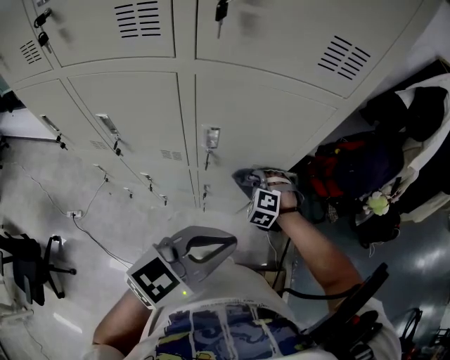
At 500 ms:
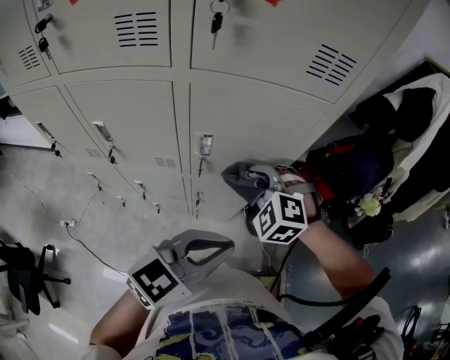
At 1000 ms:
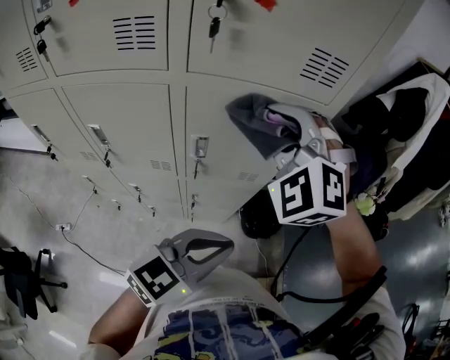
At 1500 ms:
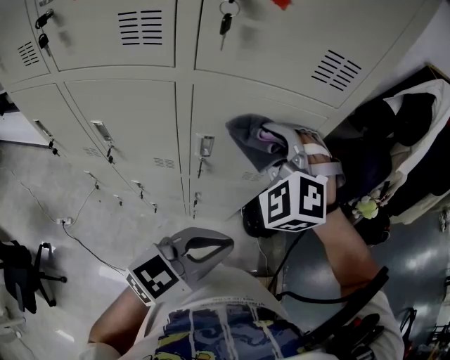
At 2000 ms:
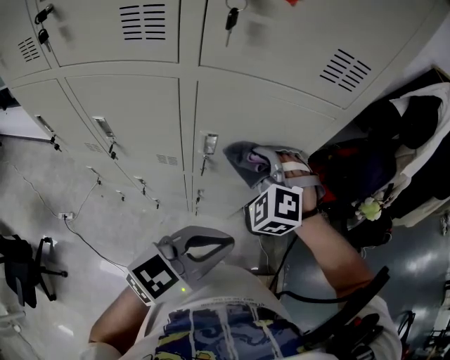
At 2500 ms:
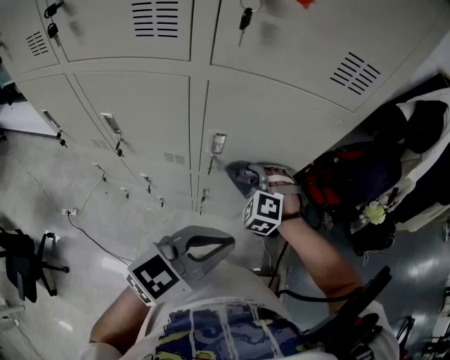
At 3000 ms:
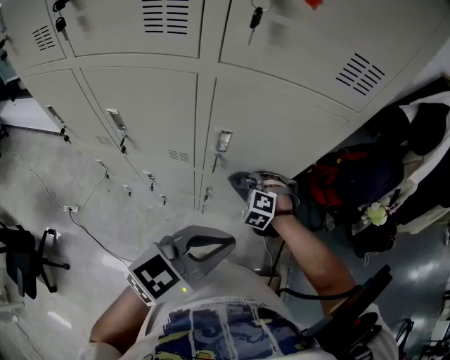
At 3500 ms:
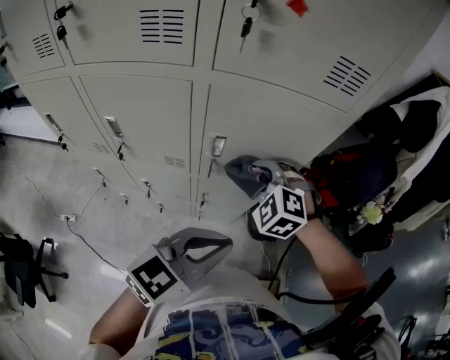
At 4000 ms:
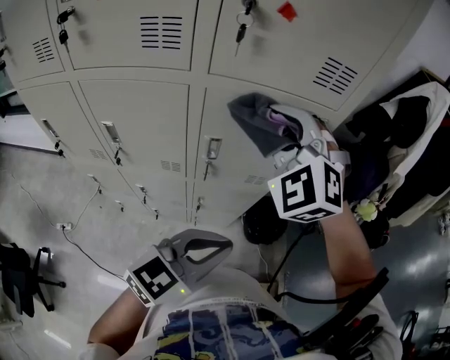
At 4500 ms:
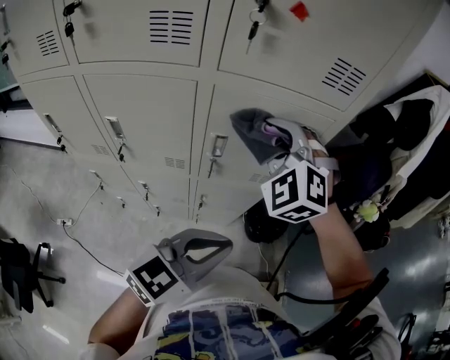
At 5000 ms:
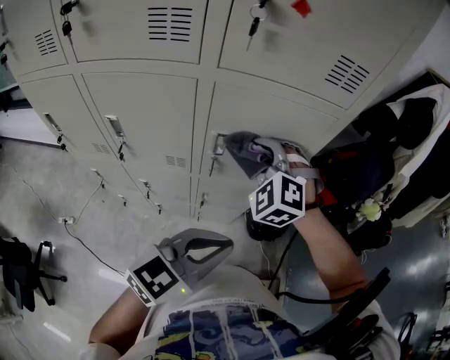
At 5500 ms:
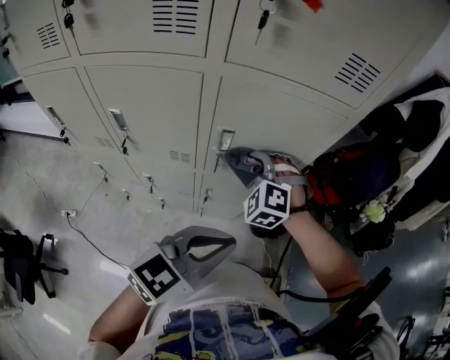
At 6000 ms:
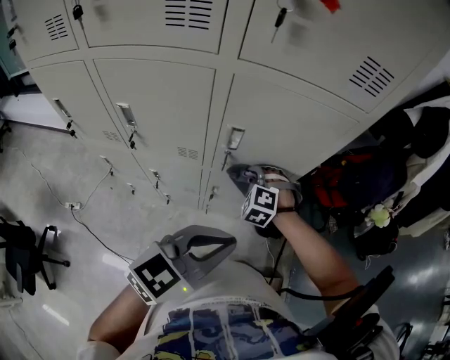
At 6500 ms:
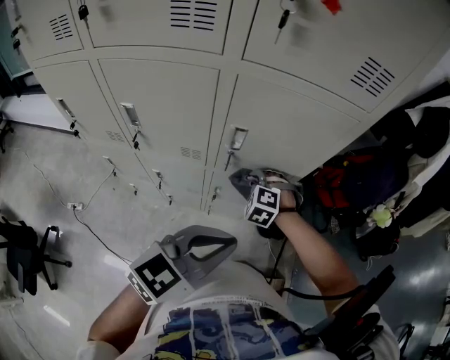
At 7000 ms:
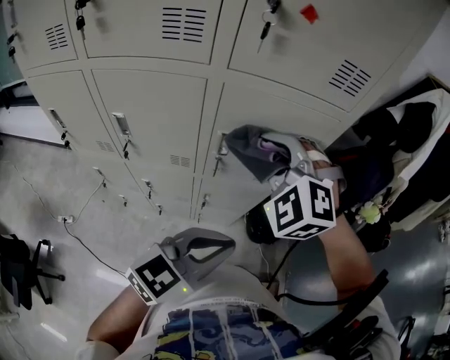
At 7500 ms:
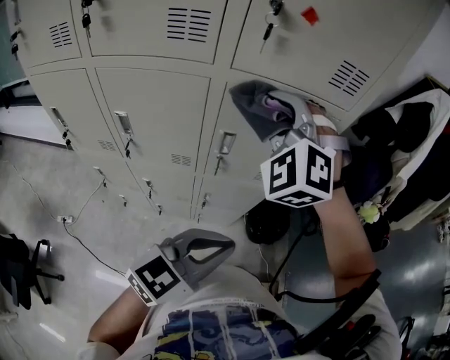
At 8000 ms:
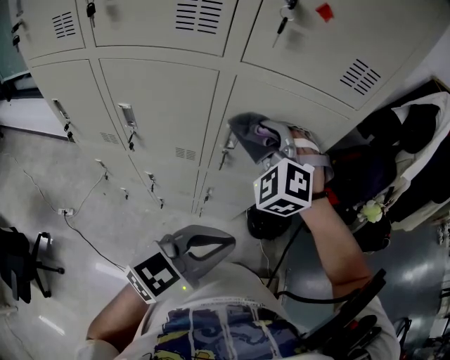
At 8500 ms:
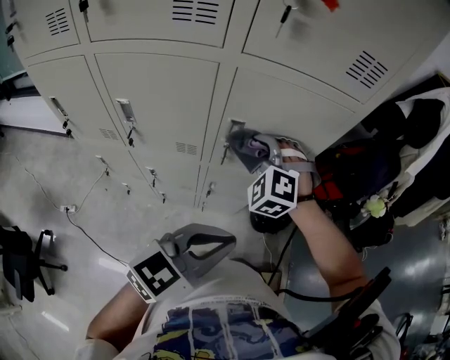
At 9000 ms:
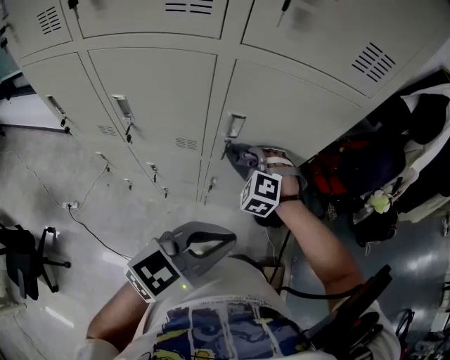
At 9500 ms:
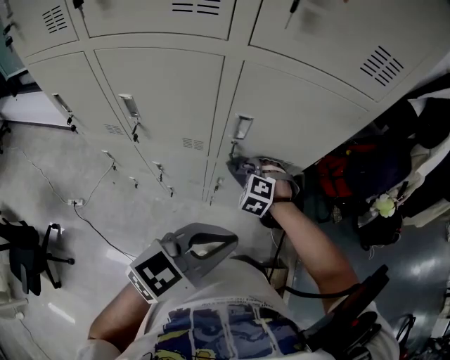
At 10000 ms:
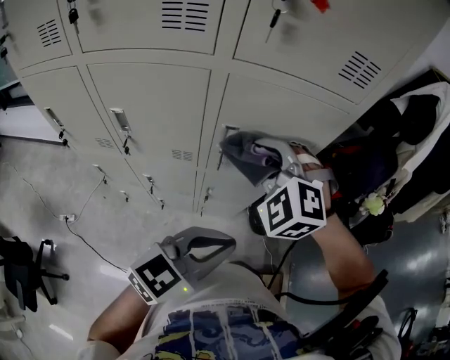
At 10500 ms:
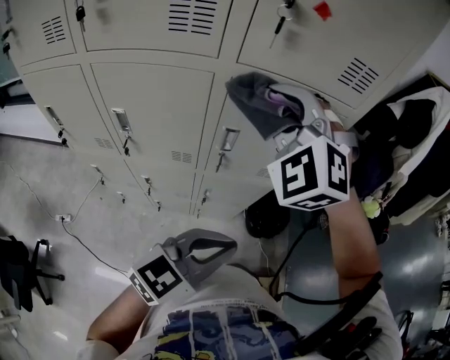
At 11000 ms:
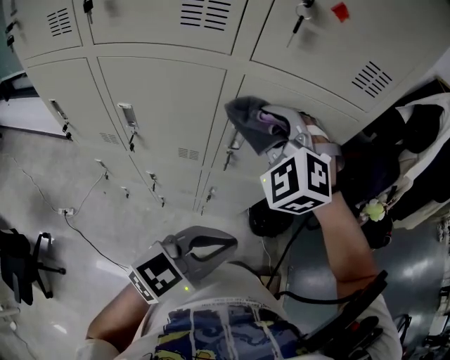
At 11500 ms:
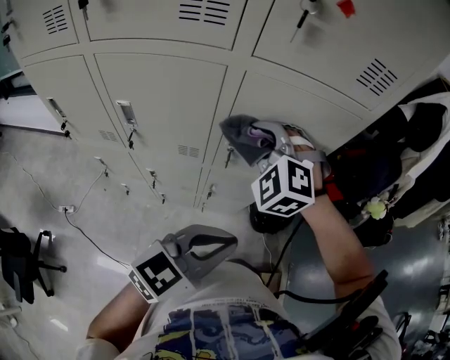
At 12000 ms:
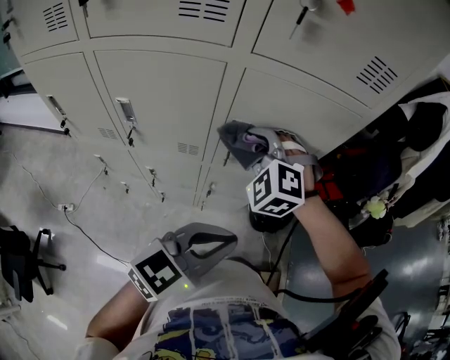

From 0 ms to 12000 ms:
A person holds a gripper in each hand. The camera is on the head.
From 0 ms to 2000 ms: The right gripper shifts approximately 20 cm upward.
From 2000 ms to 4000 ms: The right gripper heads upward, covering roughly 20 cm, and turns by roughly 20 degrees.
From 4000 ms to 6000 ms: The right gripper goes about 35 cm downward, and tilts its fingers about 30 degrees downward.
From 6000 ms to 8000 ms: The right gripper goes some 25 cm upward, and rotates about 20 degrees.
From 8000 ms to 10000 ms: The right gripper travels downward and back again, about 25 cm each way.
From 10000 ms to 12000 ms: The right gripper moves roughly 15 cm upward and comes back.

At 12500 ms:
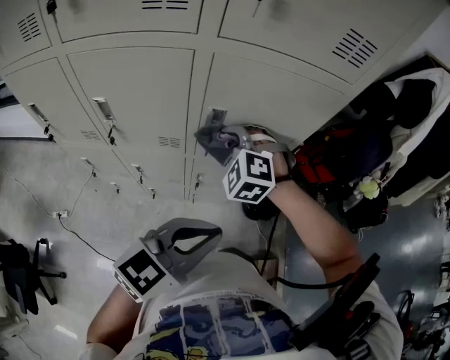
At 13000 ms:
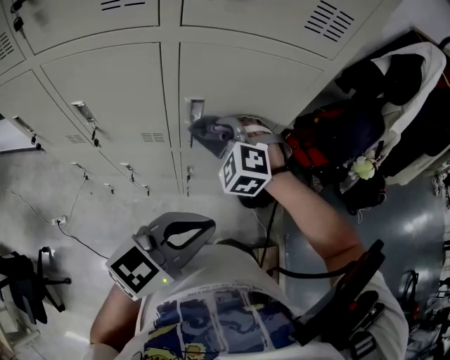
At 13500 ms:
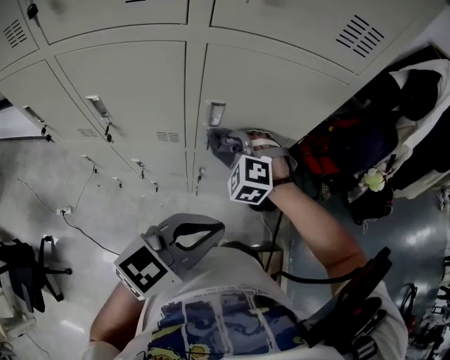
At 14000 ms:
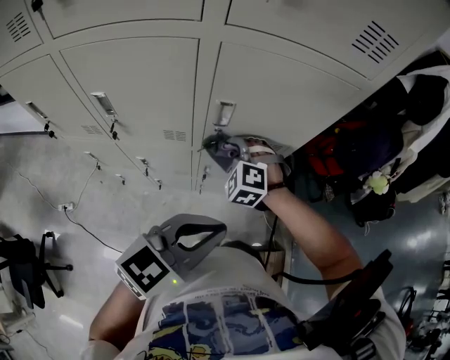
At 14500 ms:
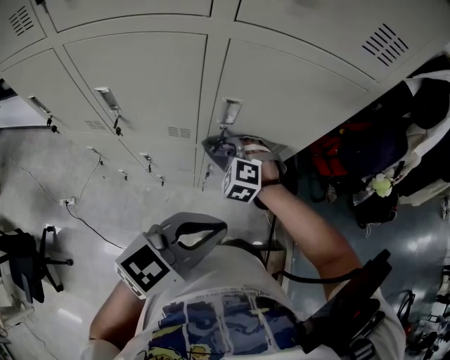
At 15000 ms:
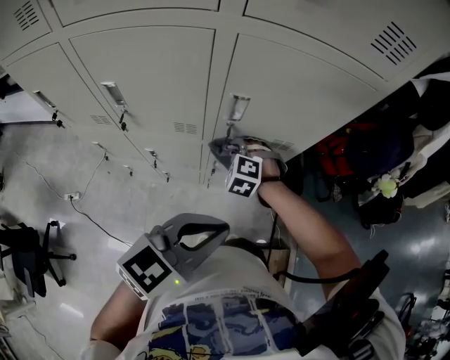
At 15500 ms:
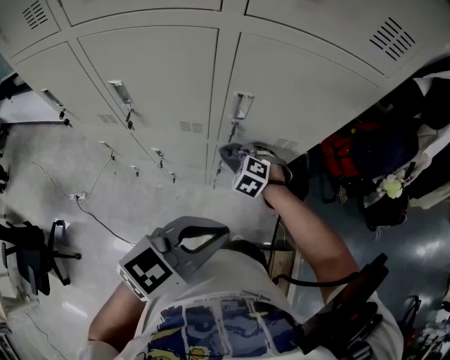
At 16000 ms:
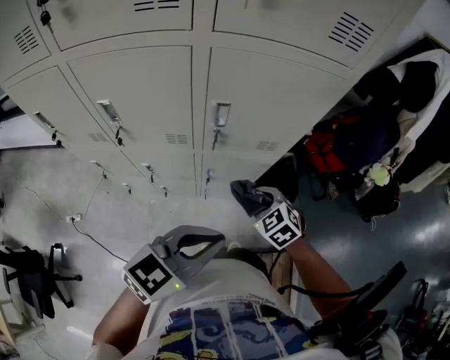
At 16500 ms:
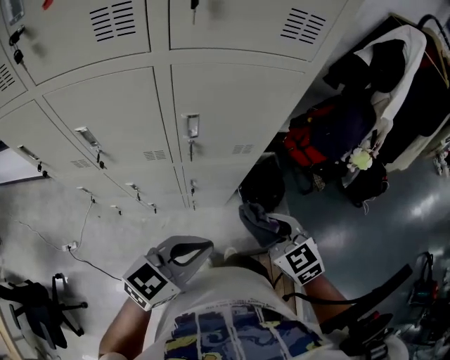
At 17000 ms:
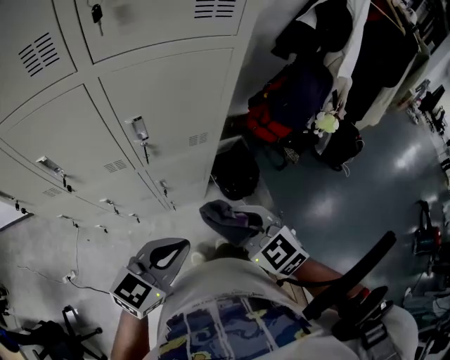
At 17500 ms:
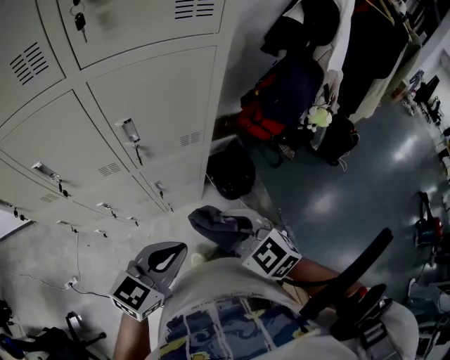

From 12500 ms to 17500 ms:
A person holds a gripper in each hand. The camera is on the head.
From 12500 ms to 15000 ms: The right gripper heads downward, covering some 15 cm.
From 15000 ms to 17500 ms: The right gripper is displaced backward, to the right and upward by roughly 30 cm, and twists about 50 degrees clockwise, seen from behind; the left gripper changes place by approximately 10 cm.

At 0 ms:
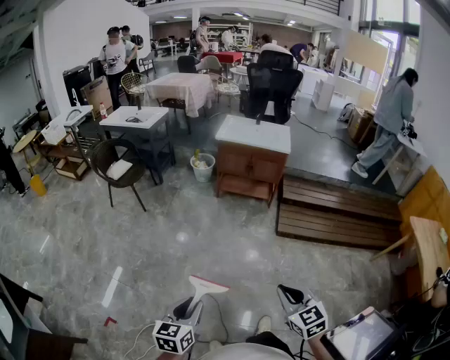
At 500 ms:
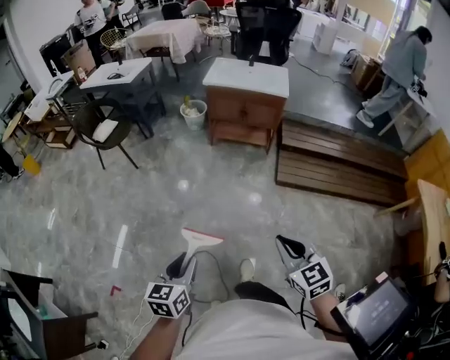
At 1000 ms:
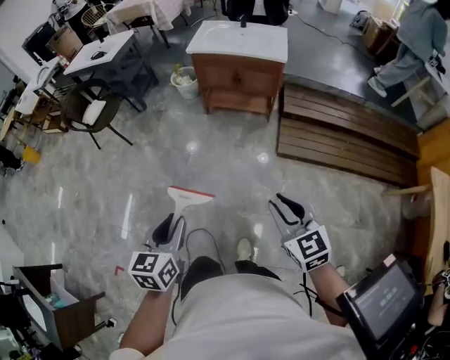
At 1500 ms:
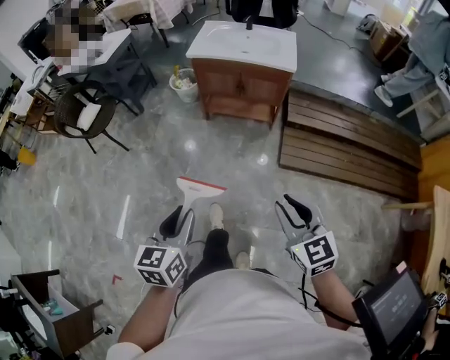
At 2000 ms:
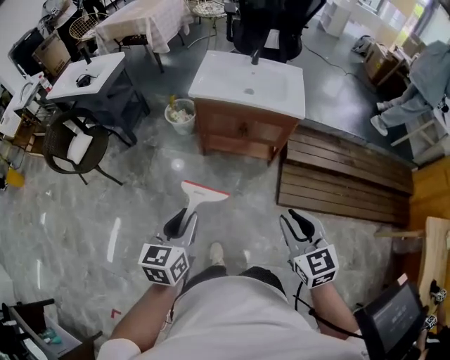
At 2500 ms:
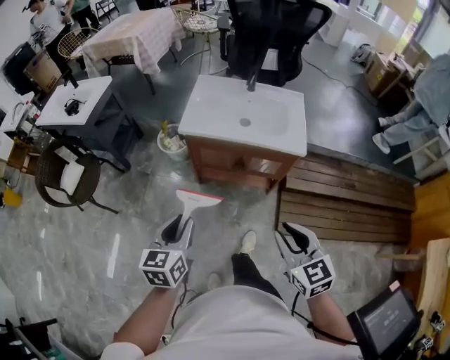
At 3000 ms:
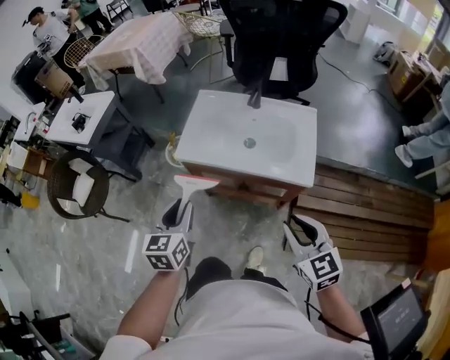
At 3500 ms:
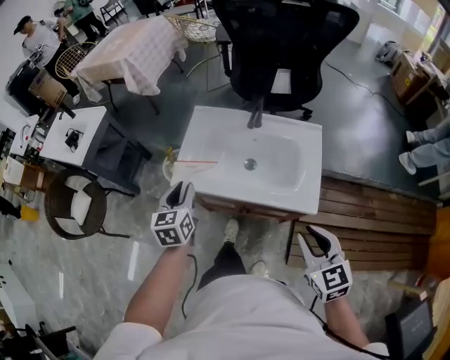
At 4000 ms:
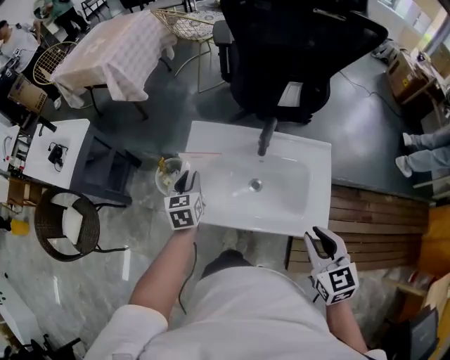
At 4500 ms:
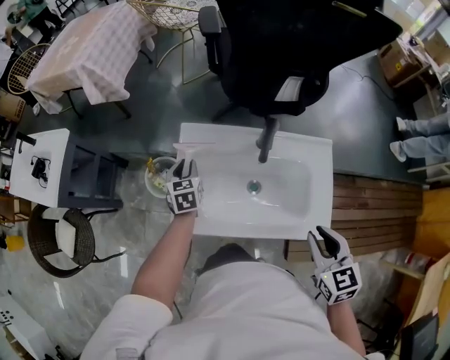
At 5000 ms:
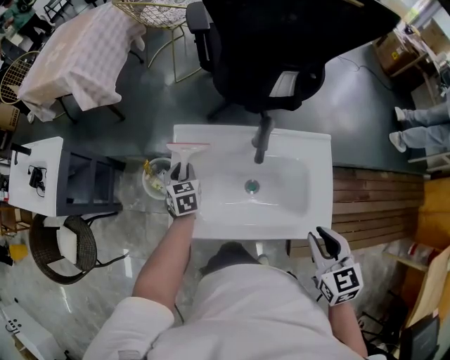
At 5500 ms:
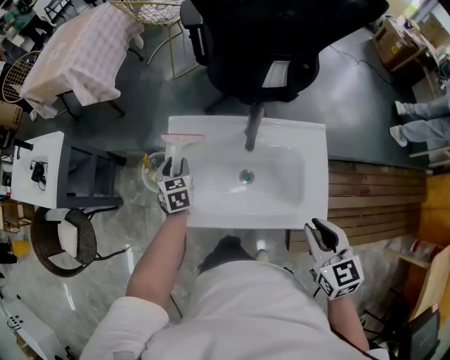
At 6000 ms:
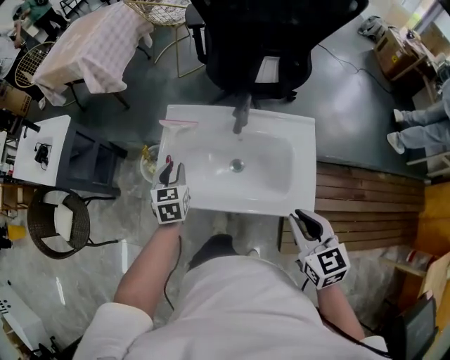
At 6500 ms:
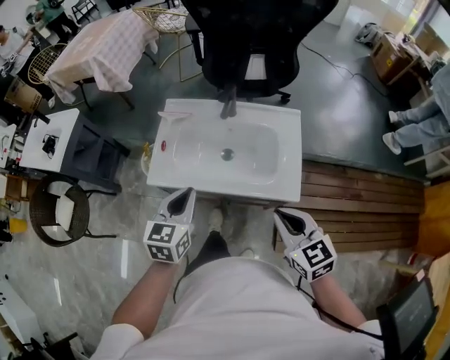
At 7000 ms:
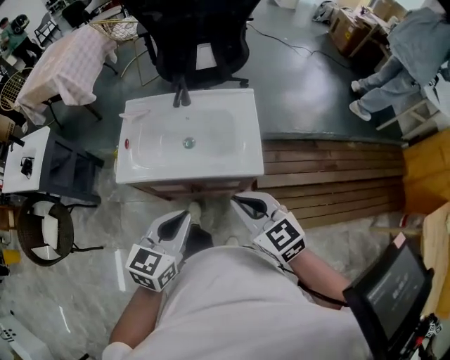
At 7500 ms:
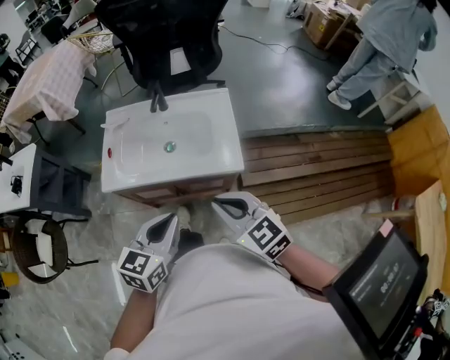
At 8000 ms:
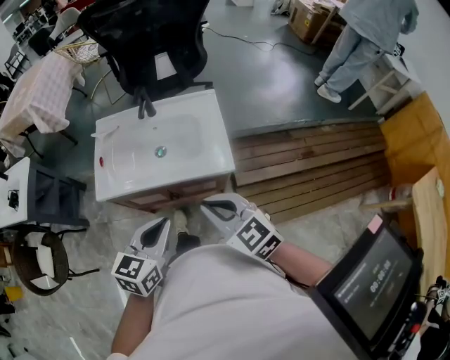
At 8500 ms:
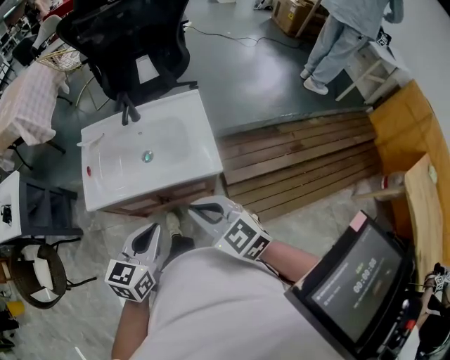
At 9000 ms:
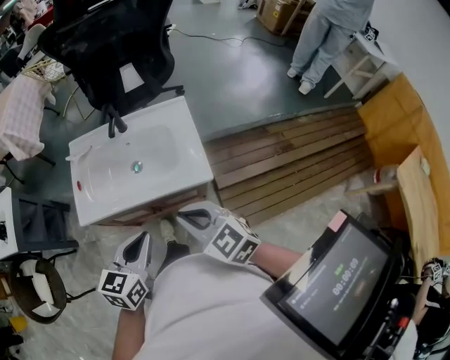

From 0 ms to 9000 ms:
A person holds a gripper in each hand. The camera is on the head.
From 0 ms to 2000 ms: The pair of grippers is taken forward, some 70 cm.
From 2000 ms to 4500 ms: Both grippers are carried forward, roughly 90 cm. The left gripper changes its angle by roughly 20 degrees.
From 4500 ms to 7000 ms: The left gripper is displaced backward and to the right by roughly 50 cm, rotates approximately 40 degrees, and closes. The right gripper is displaced backward by some 25 cm, and changes its angle by some 20 degrees.
From 7000 ms to 9000 ms: The grippers move only a little.

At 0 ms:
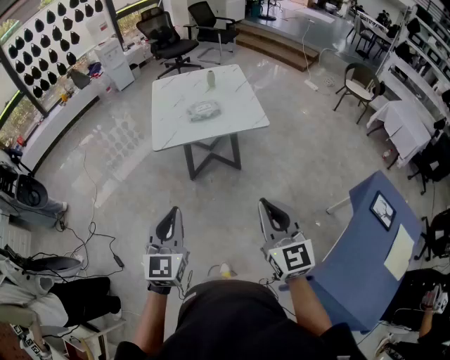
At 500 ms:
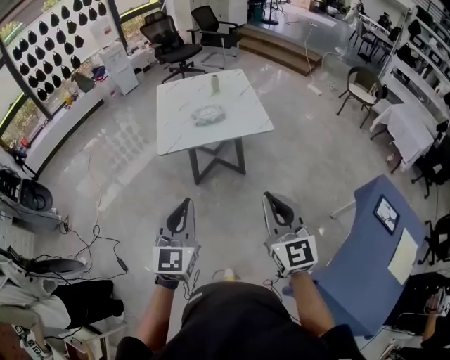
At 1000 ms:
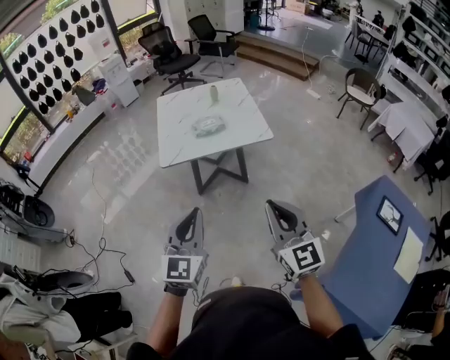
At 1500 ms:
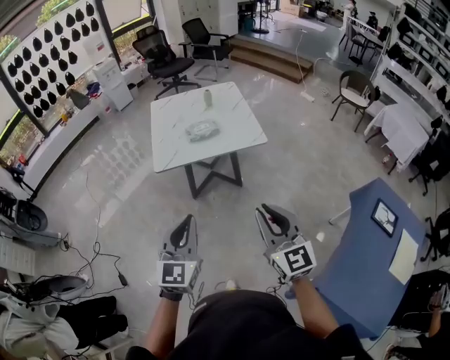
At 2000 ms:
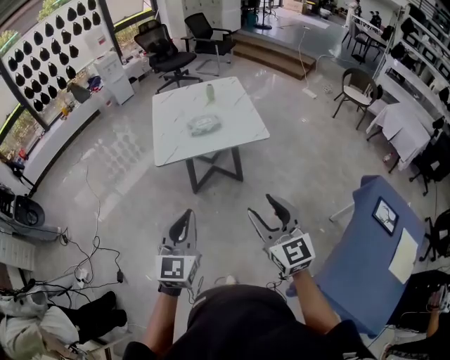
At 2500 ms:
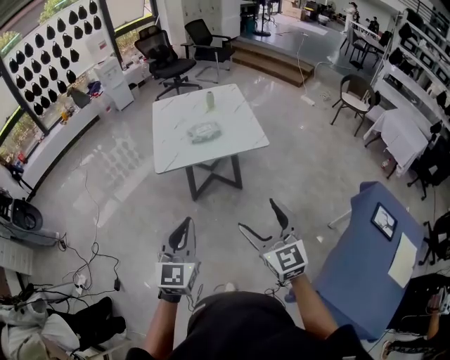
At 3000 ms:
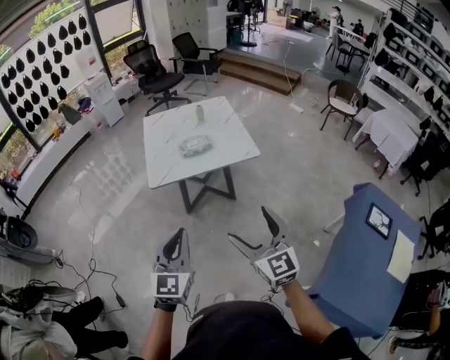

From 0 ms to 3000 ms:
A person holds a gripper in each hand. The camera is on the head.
From 0 ms to 1500 ms: The left gripper shifts by roughly 5 cm.
From 1500 ms to 3000 ms: The right gripper opens up.
